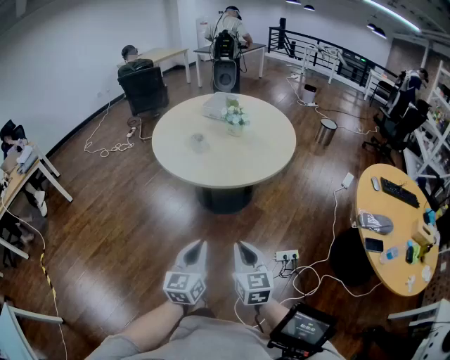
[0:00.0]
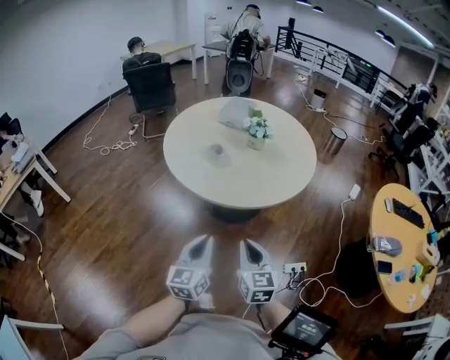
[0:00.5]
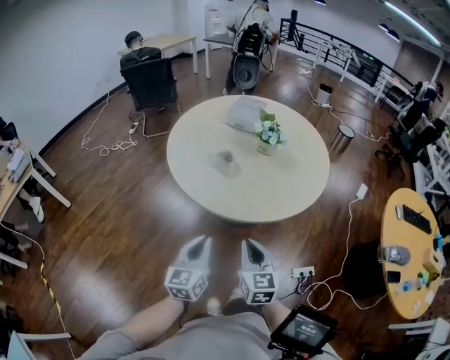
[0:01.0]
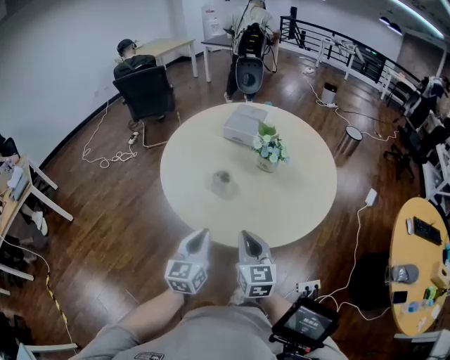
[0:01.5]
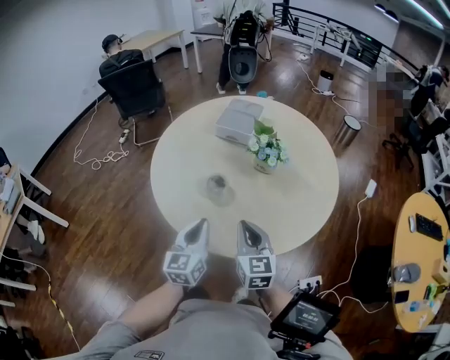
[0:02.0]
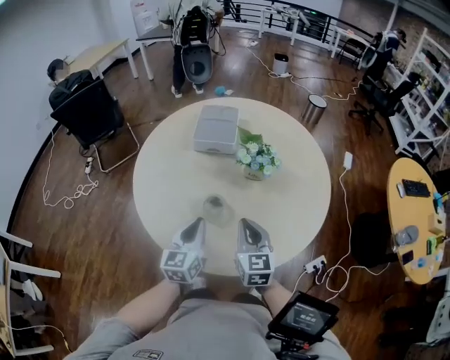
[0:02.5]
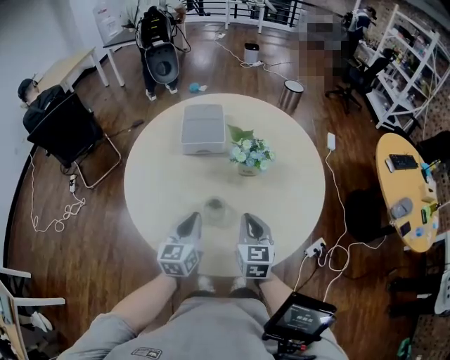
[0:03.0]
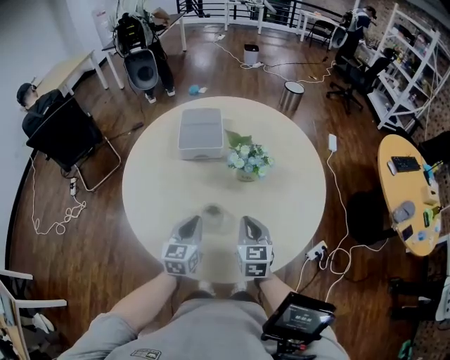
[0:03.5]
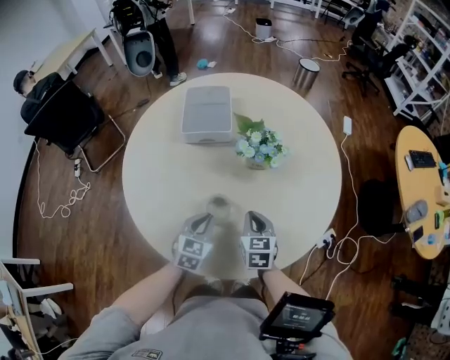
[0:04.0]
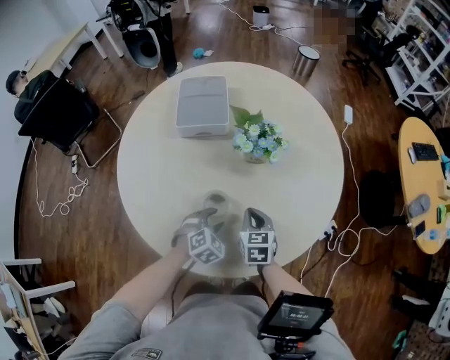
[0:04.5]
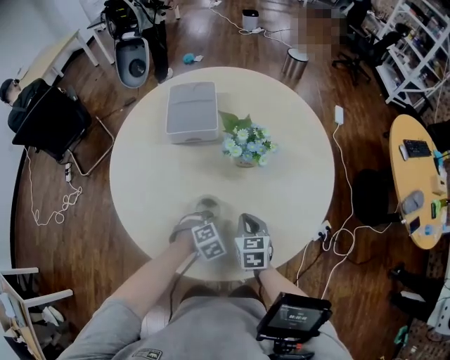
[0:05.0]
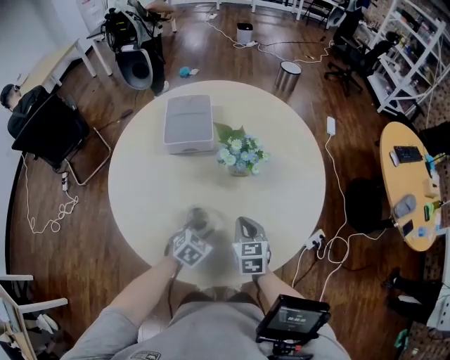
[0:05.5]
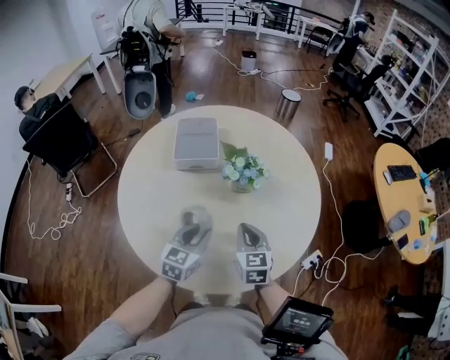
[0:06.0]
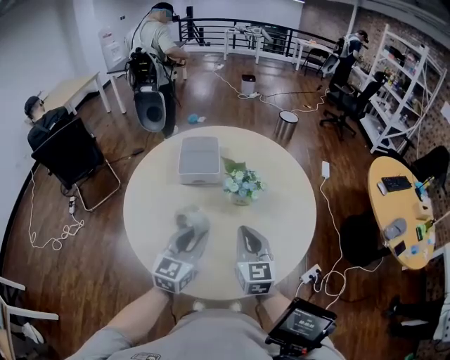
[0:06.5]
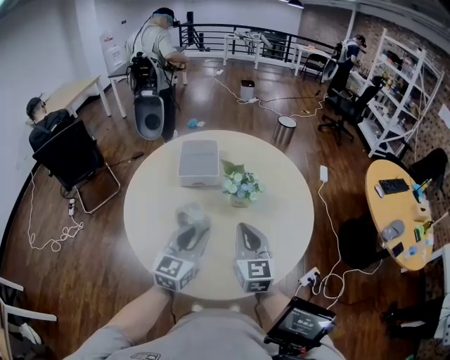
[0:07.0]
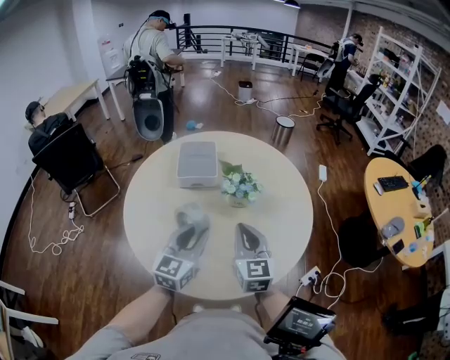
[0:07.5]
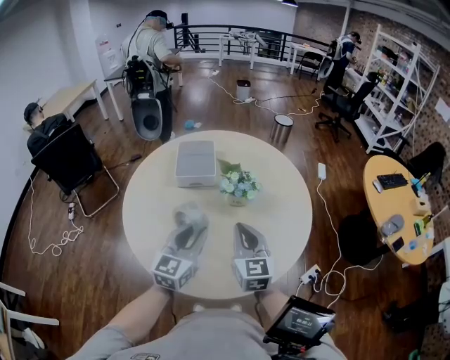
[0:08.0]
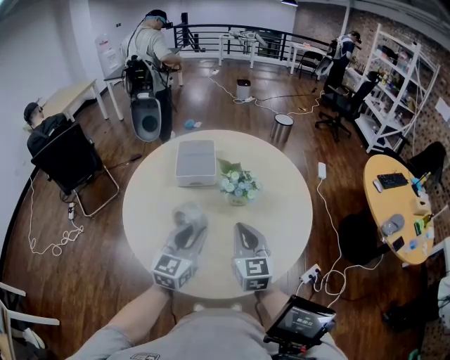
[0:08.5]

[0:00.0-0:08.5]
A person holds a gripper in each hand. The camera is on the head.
0:00.0 to 0:02.0: Both grippers are carried forward, some 50 cm.
0:02.0 to 0:04.0: The right gripper shifts by some 20 cm, and rotates some 40 degrees. The left gripper changes place by roughly 25 cm, and changes its angle by approximately 50 degrees.
0:04.0 to 0:06.5: The two grippers go roughly 20 cm upward. The right gripper swivels some 30 degrees. Meanwhile the left gripper changes its angle by roughly 30 degrees, and opens its fingers.
0:06.5 to 0:08.5: The grippers move only a little.

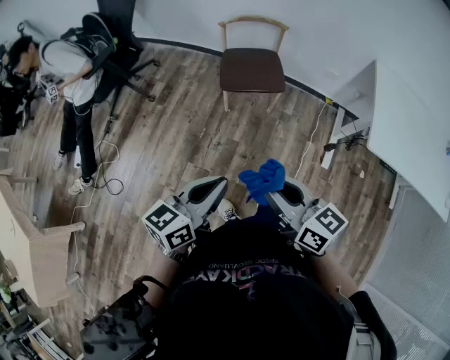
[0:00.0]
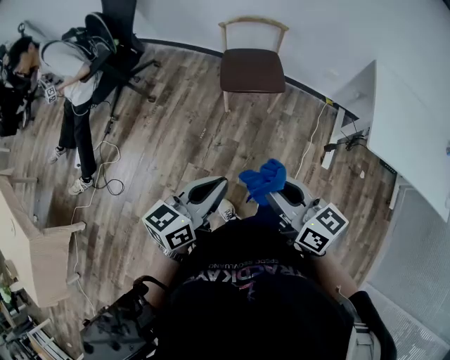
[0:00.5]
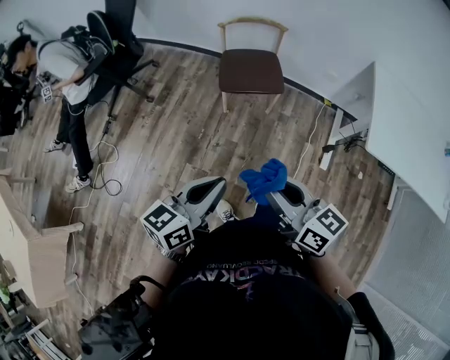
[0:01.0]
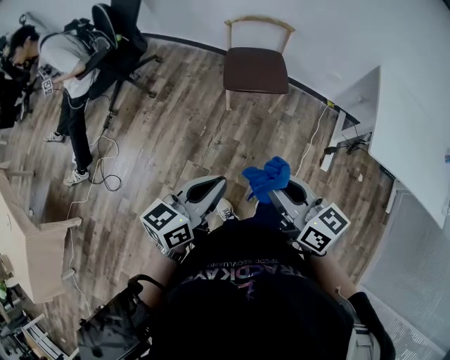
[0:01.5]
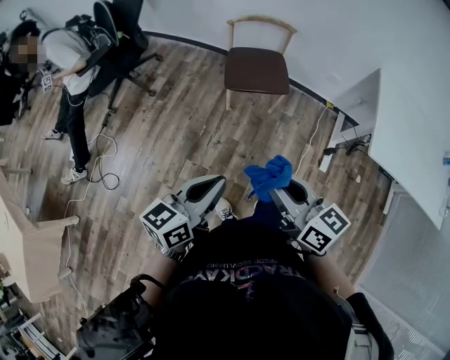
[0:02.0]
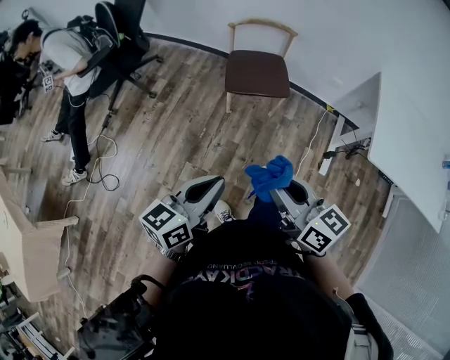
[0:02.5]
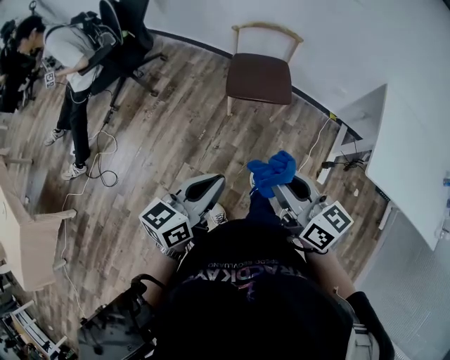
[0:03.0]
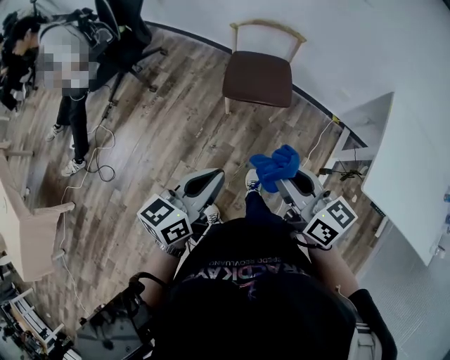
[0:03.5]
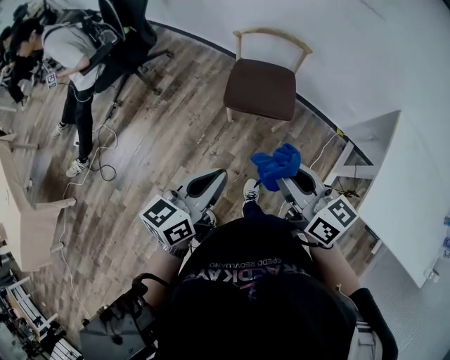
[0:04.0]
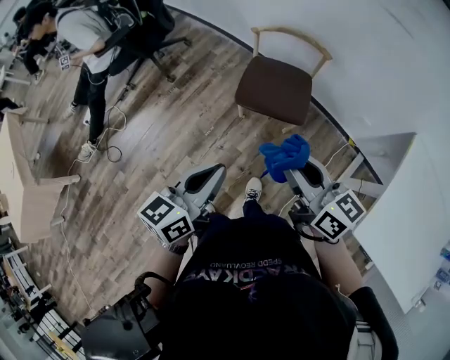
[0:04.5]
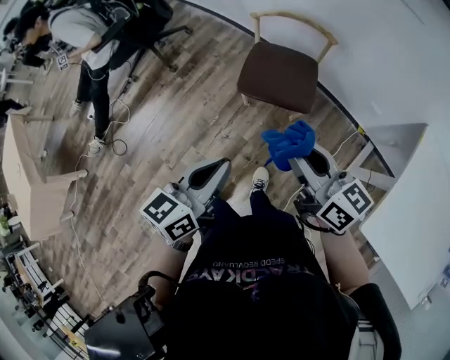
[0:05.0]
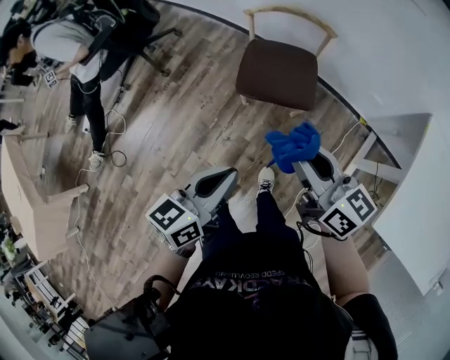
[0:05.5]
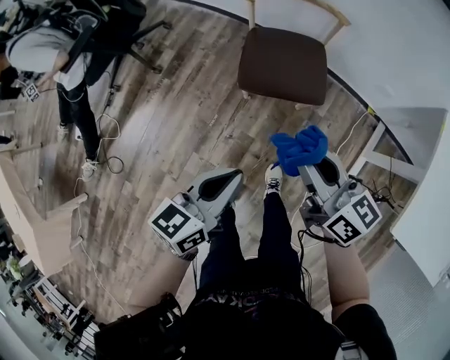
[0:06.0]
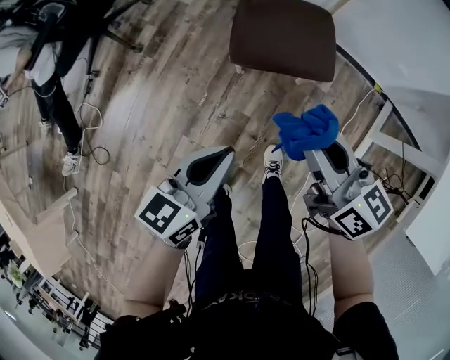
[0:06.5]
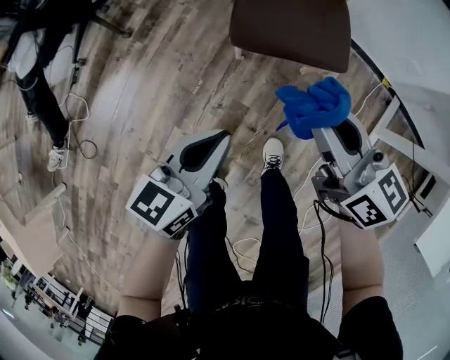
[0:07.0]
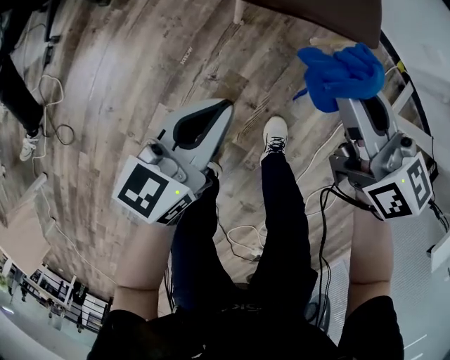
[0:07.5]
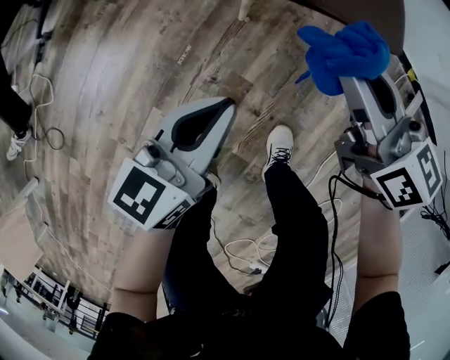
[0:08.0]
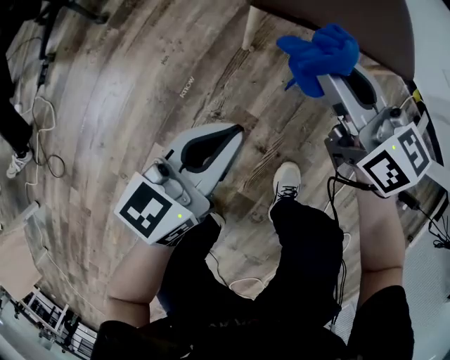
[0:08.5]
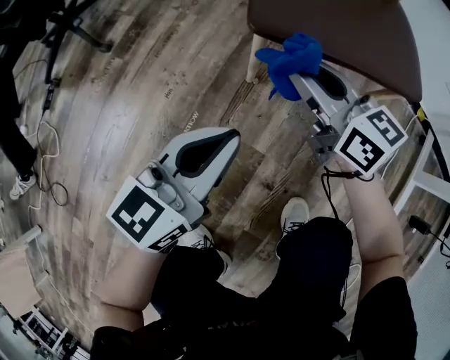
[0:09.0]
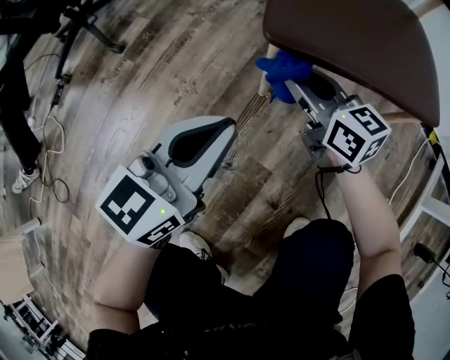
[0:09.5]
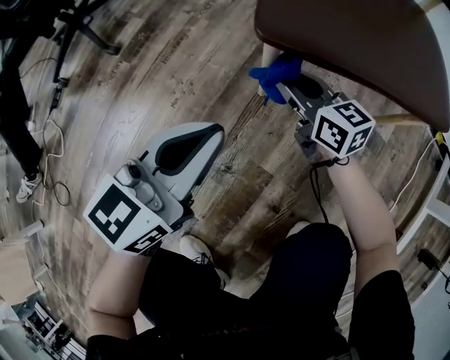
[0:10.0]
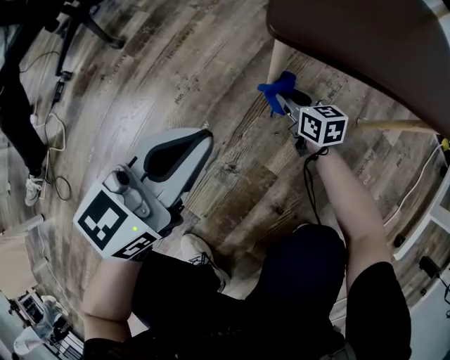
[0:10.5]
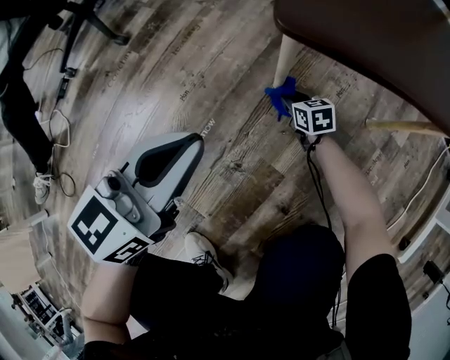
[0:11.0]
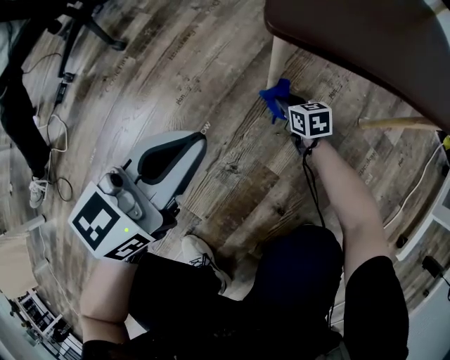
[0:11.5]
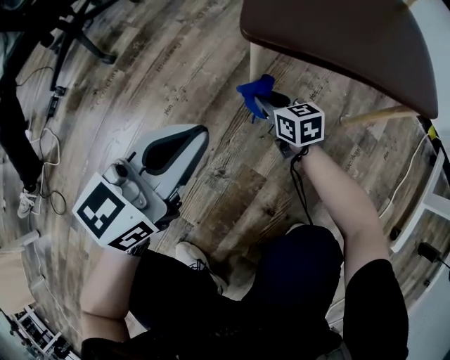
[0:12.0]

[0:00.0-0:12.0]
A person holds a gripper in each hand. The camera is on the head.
0:00.0 to 0:02.0: The grippers make only small movements.
0:02.0 to 0:04.0: The grippers both shift forward and to the right by roughly 25 cm.
0:04.0 to 0:06.0: The left gripper travels downward and forward by some 15 cm. The right gripper heads forward and downward, covering roughly 20 cm.
0:06.0 to 0:08.0: The grippers both shift downward by about 35 cm.
0:08.0 to 0:10.0: The left gripper heads downward and forward, covering approximately 15 cm, while the right gripper travels downward and forward by some 35 cm.
0:10.0 to 0:12.0: The right gripper travels downward by about 10 cm.

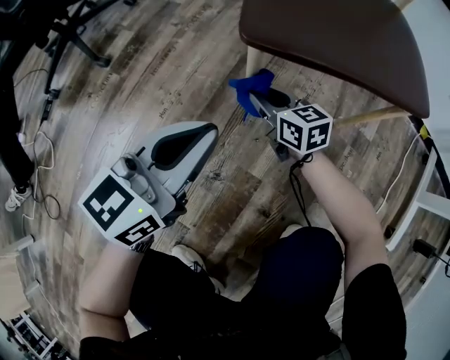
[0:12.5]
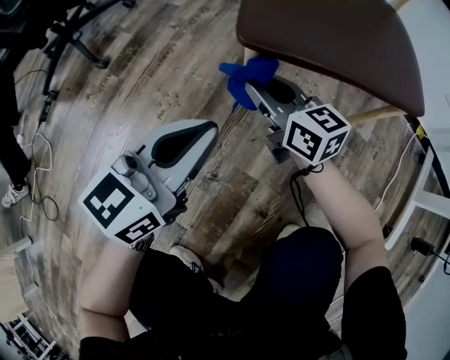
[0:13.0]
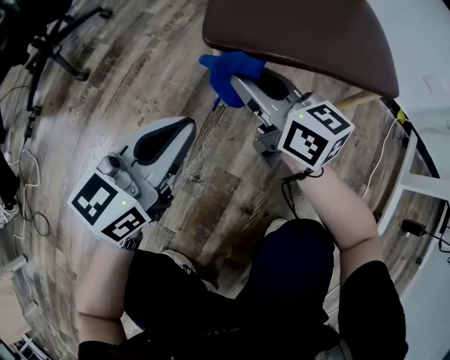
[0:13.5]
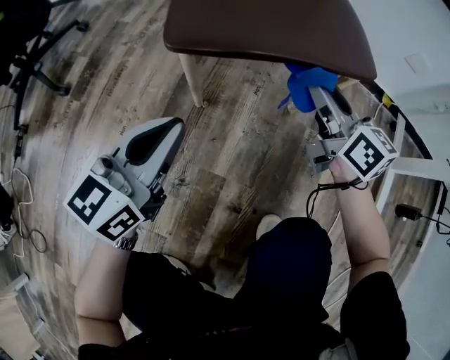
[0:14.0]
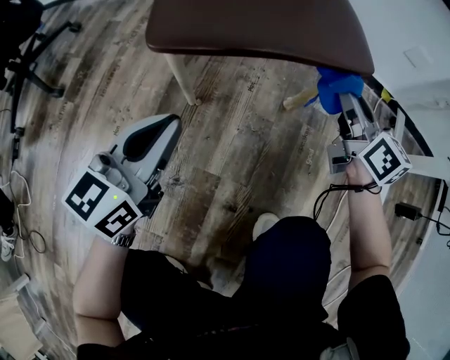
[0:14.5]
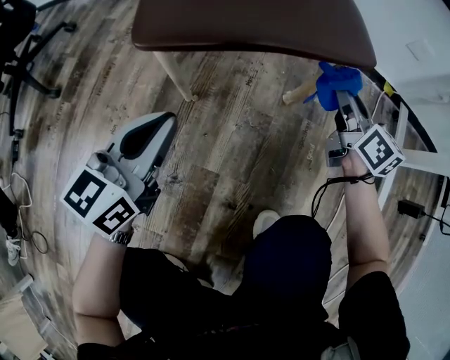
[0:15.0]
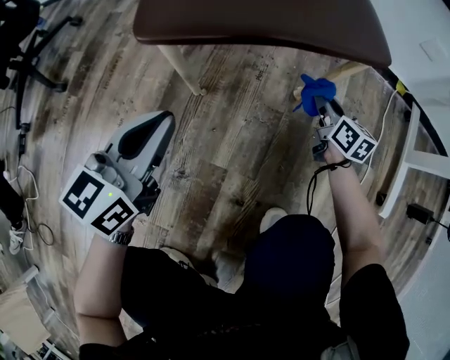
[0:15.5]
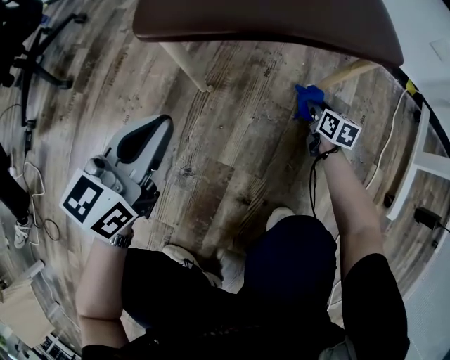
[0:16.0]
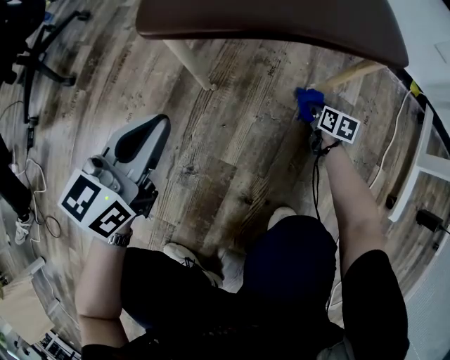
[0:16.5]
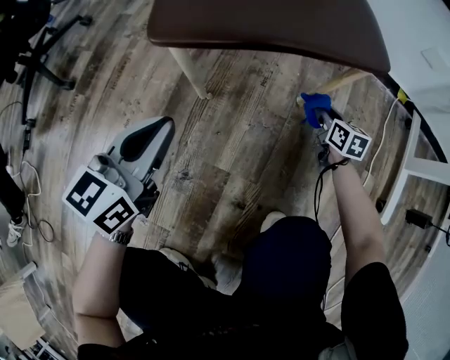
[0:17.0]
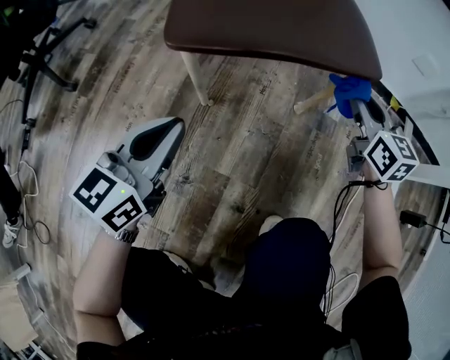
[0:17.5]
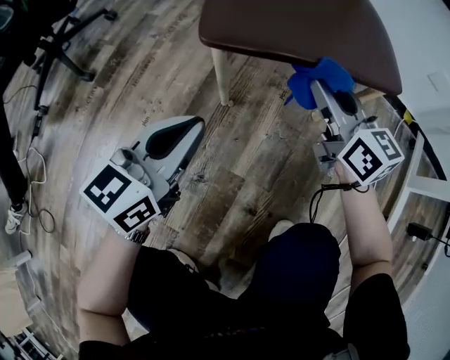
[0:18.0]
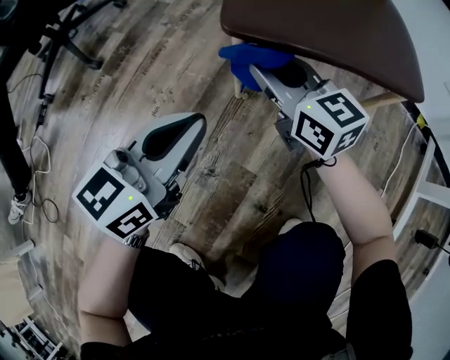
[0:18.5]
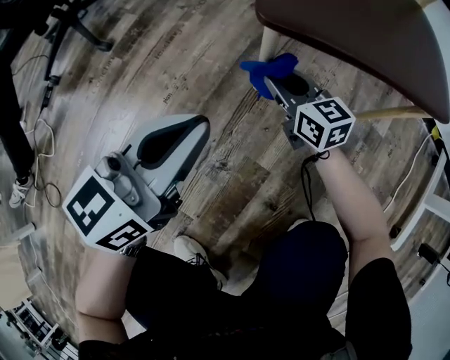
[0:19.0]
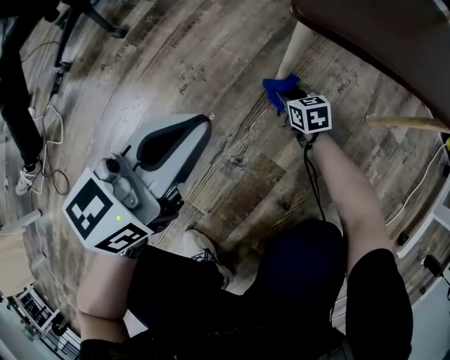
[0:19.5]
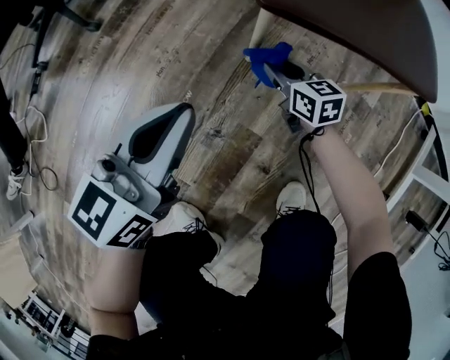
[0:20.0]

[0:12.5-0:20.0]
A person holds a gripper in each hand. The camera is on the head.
0:12.5 to 0:14.5: The left gripper heads to the right, covering some 5 cm. Meanwhile the right gripper is displaced to the right and upward by about 35 cm, and swivels roughly 40 degrees.
0:14.5 to 0:16.5: The right gripper shifts roughly 35 cm downward, and angles its fingers downward, by about 30 degrees.
0:16.5 to 0:18.0: The right gripper shifts roughly 40 cm upward and to the left, and tips its fingers upward by approximately 40 degrees.
0:18.0 to 0:20.0: The right gripper shifts roughly 25 cm downward and to the left, and swivels some 30 degrees, while the left gripper heads to the left, covering about 10 cm.
